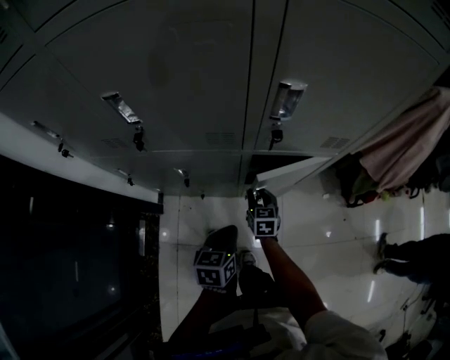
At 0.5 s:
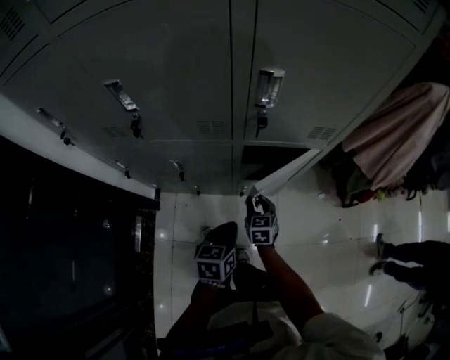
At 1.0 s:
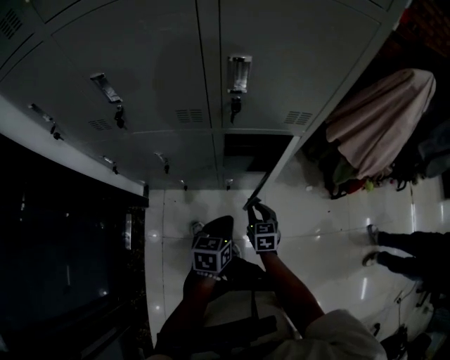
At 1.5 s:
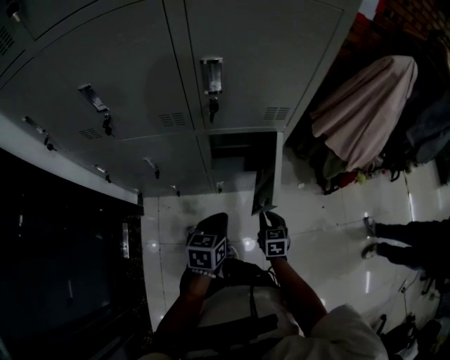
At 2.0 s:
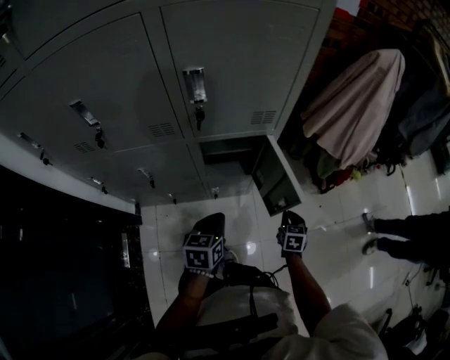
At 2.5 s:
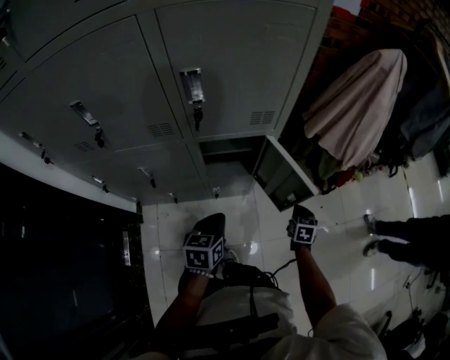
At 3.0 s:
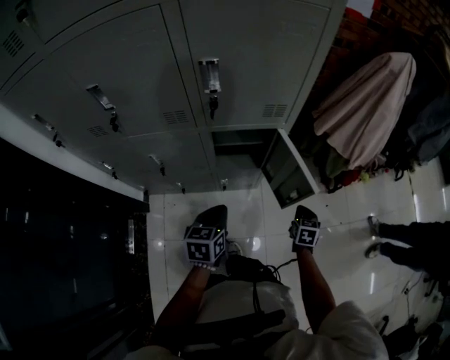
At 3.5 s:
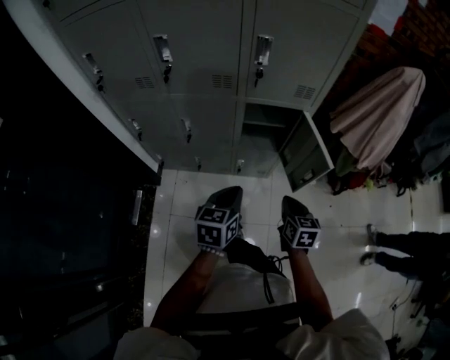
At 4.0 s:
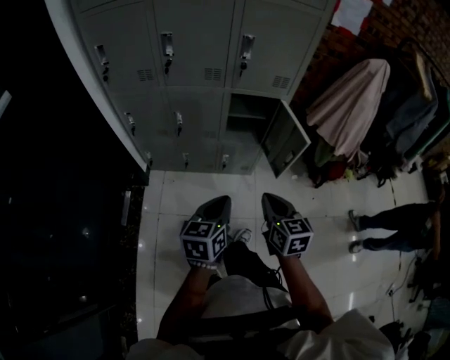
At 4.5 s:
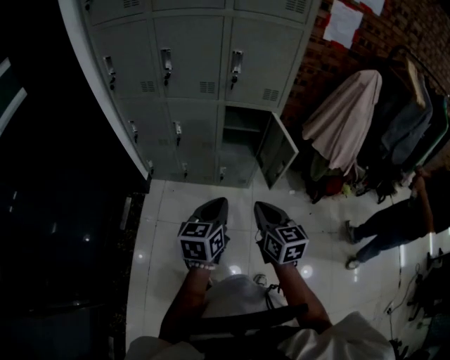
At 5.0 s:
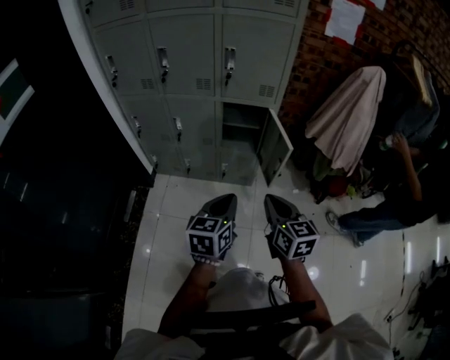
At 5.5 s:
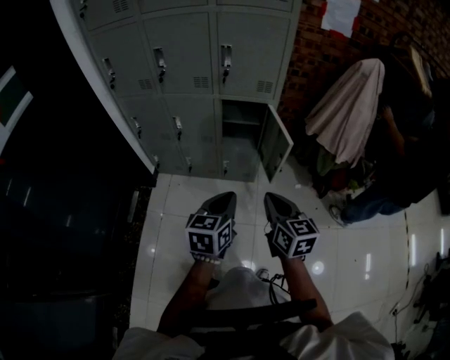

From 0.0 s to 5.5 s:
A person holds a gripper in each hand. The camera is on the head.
From 0.0 s to 2.0 s: The left gripper heads to the right, covering approximately 10 cm; the right gripper shifts roughly 30 cm to the right, rotates some 20 degrees, and closes.
From 2.0 s to 3.5 s: The left gripper shifts approximately 15 cm backward and upward. The right gripper travels upward, backward and to the left by roughly 25 cm, and rotates approximately 20 degrees.
From 3.5 s to 5.5 s: The right gripper travels upward and backward by approximately 25 cm, and swivels roughly 20 degrees, while the left gripper travels backward, to the right and upward by roughly 20 cm.

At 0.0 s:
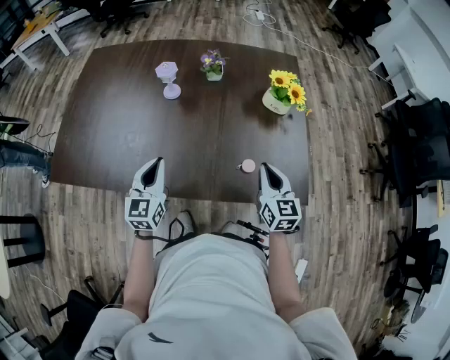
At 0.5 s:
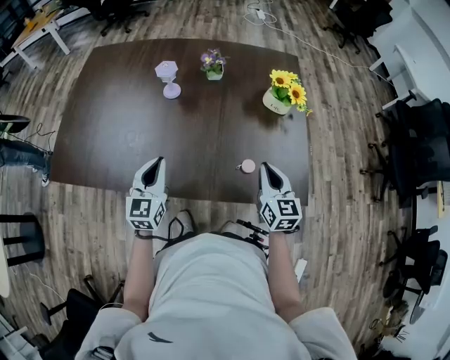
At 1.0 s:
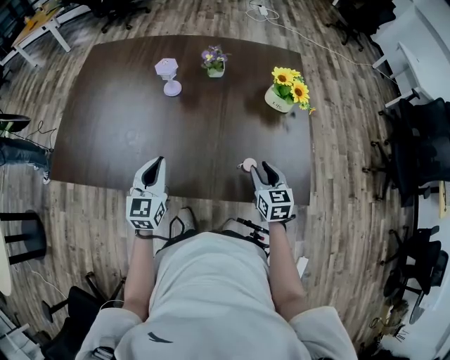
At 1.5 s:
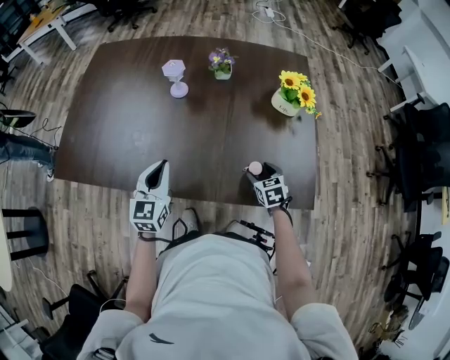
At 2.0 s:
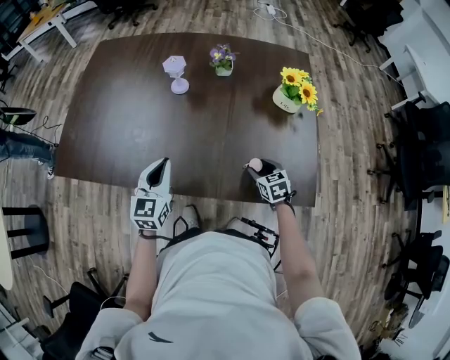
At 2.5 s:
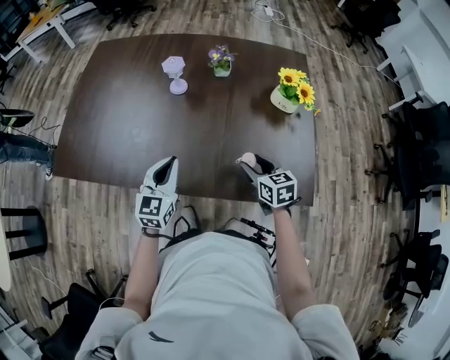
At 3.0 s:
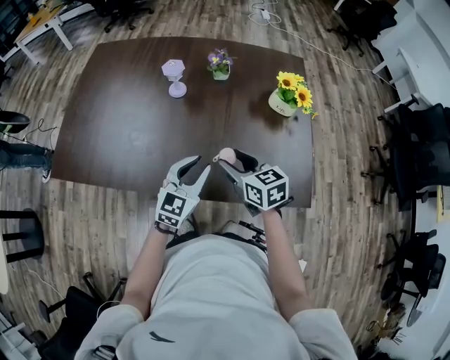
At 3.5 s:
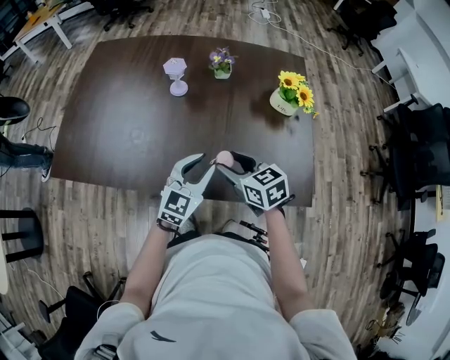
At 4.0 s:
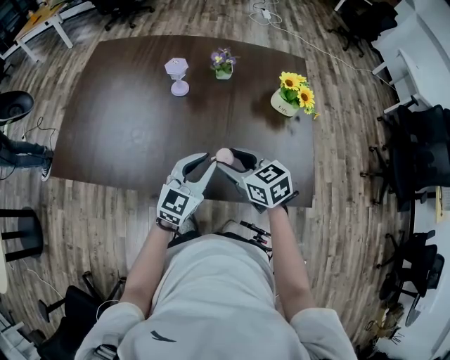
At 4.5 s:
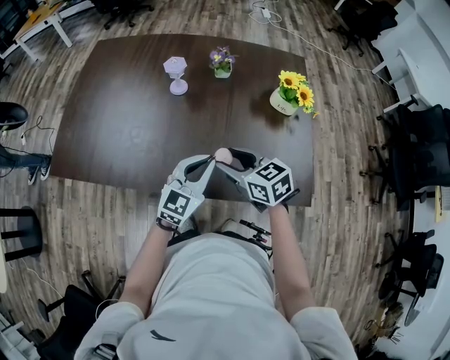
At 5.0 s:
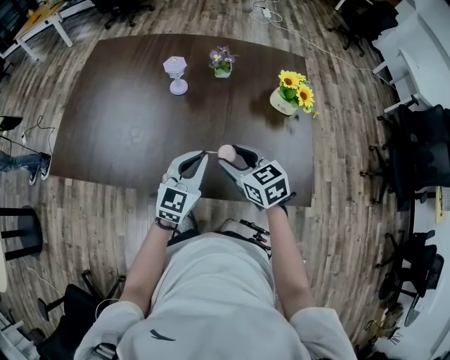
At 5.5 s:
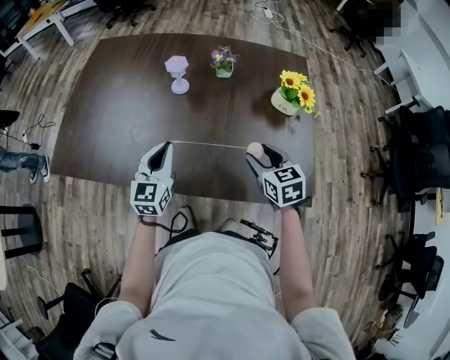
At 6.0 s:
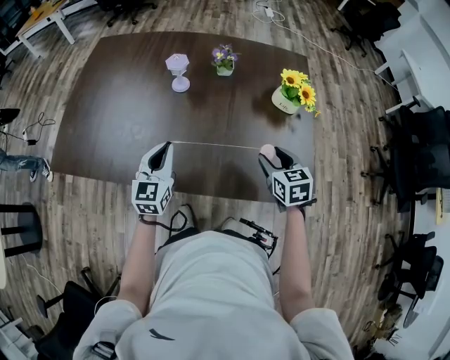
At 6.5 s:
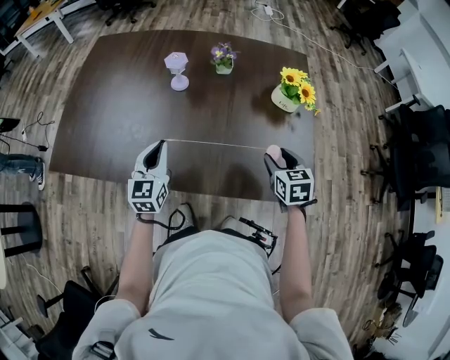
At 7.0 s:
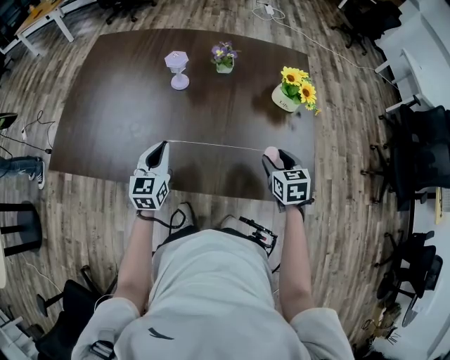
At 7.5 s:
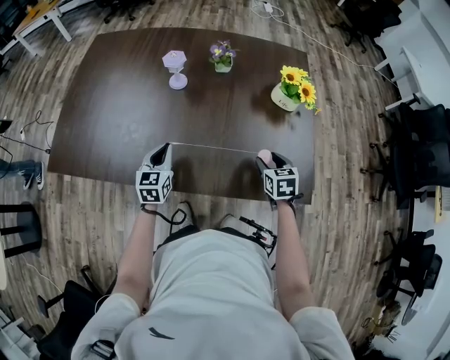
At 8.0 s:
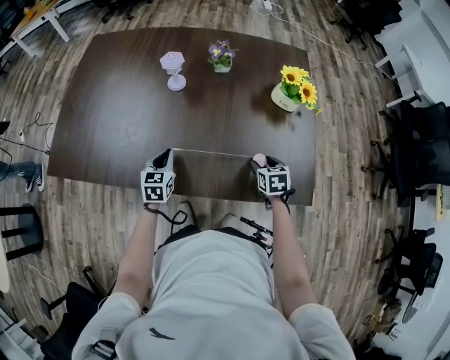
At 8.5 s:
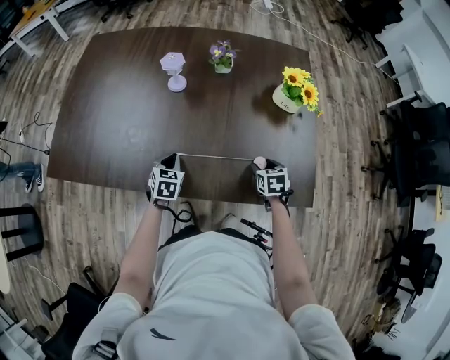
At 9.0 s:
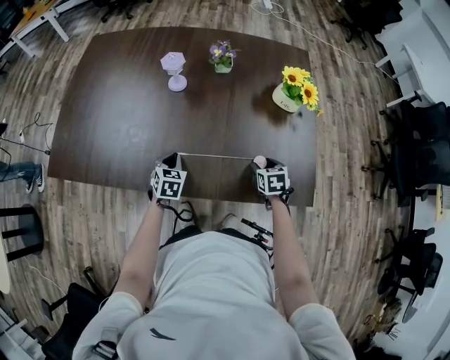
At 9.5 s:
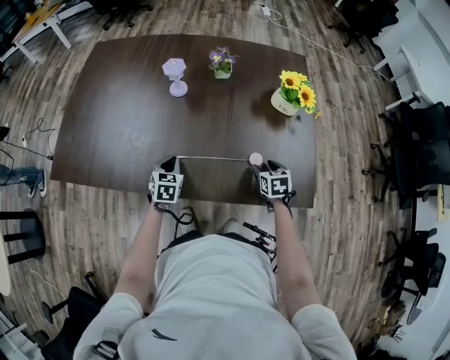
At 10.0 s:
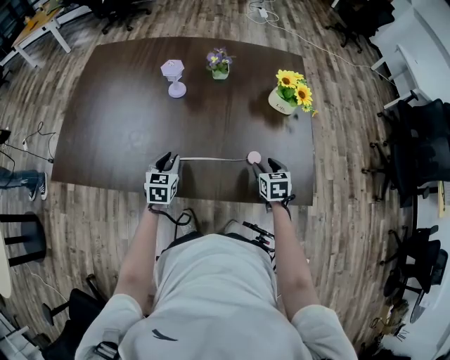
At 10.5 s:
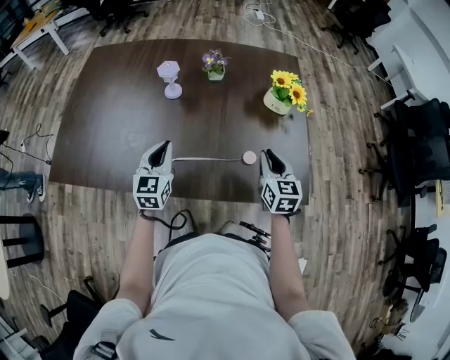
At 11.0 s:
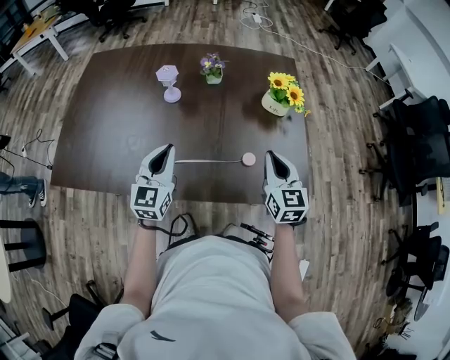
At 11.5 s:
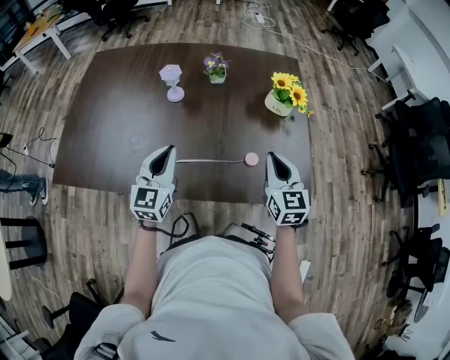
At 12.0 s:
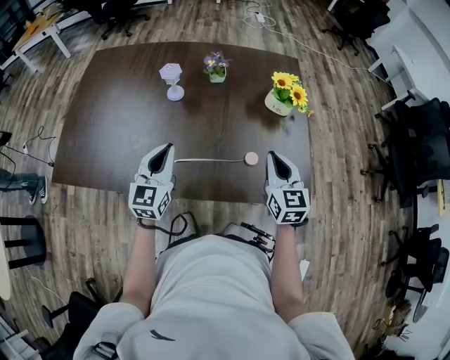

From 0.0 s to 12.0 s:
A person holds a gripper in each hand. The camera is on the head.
From 0.0 s to 2.0 s: The right gripper moves downward, about 15 cm, points its fingers some 30 degrees further downward, and opens up.
From 2.0 s to 4.0 s: The left gripper heads to the right, covering about 10 cm, and turns by about 20 degrees. The right gripper heads upward and to the left, covering approximately 25 cm, and rotates about 20 degrees.
From 4.0 s to 6.0 s: The left gripper shifts about 10 cm to the left, and rotates approximately 20 degrees, while the right gripper goes about 15 cm to the right, and turns by approximately 30 degrees.
From 6.0 s to 8.0 s: The two grippers go roughly 15 cm downward. The left gripper turns by about 20 degrees.
From 8.0 s to 10.0 s: The left gripper opens its fingers.
From 10.0 s to 12.0 s: Both grippers move upward, about 20 cm. The left gripper turns by some 30 degrees, and closes up. Meanwhile the right gripper angles its fingers upward, by some 30 degrees, and closes.

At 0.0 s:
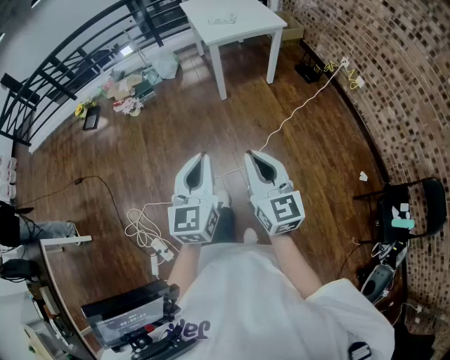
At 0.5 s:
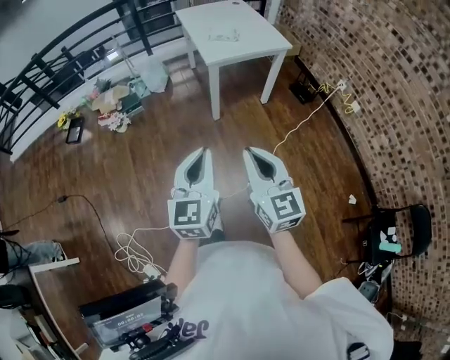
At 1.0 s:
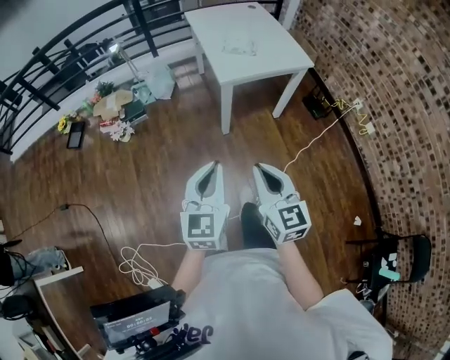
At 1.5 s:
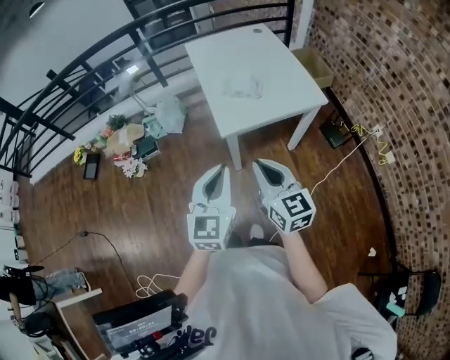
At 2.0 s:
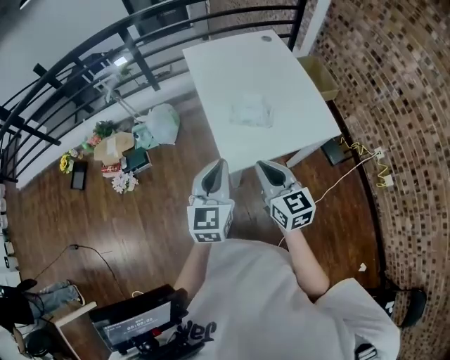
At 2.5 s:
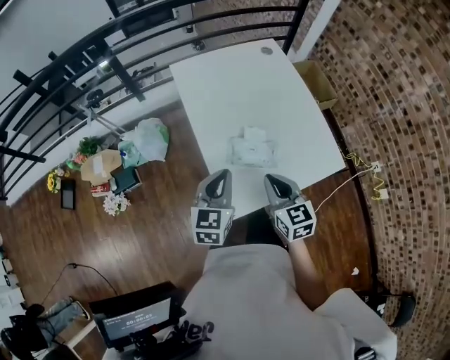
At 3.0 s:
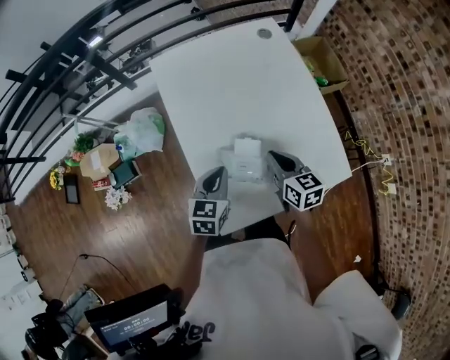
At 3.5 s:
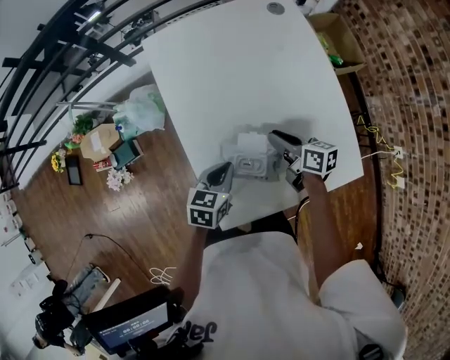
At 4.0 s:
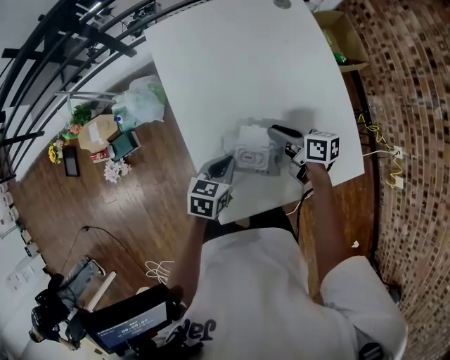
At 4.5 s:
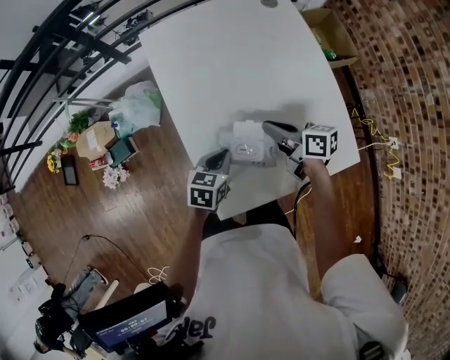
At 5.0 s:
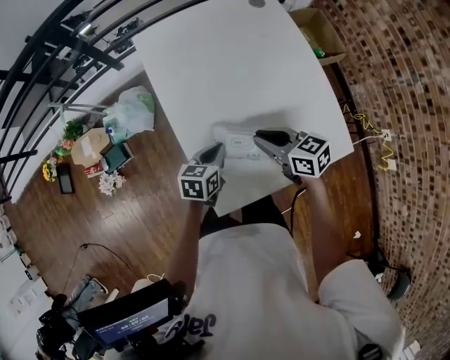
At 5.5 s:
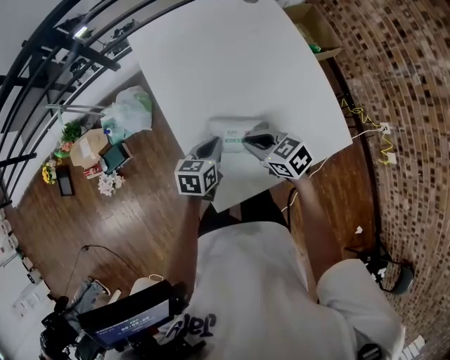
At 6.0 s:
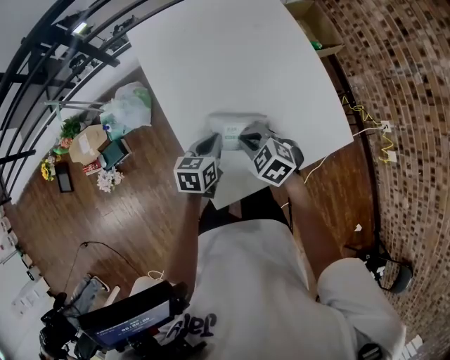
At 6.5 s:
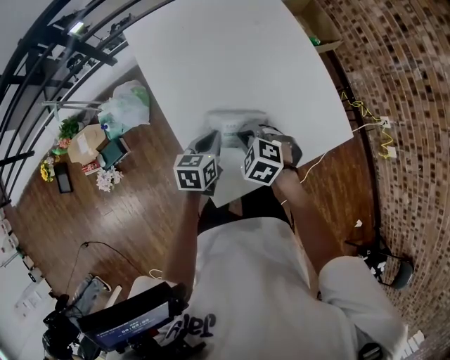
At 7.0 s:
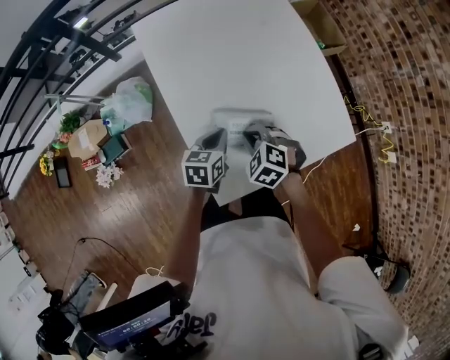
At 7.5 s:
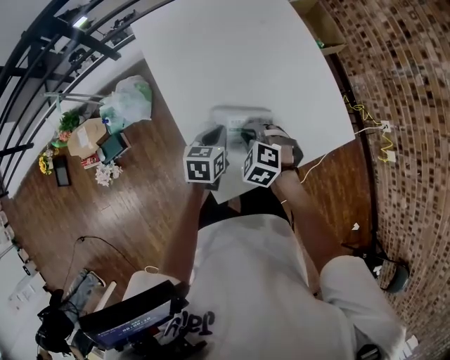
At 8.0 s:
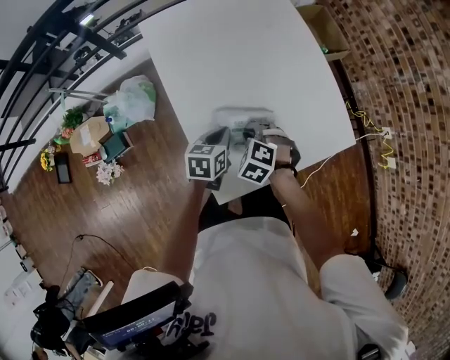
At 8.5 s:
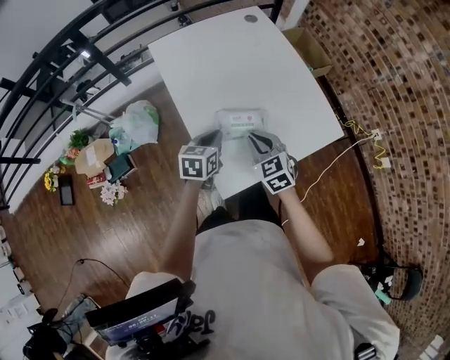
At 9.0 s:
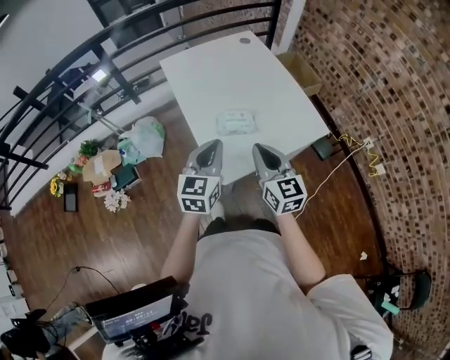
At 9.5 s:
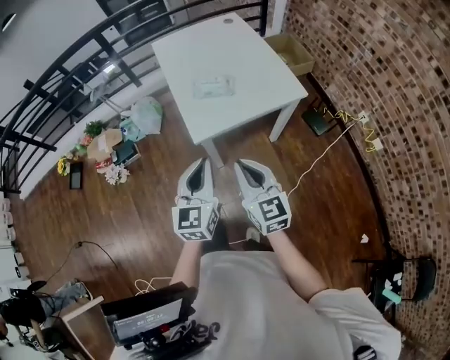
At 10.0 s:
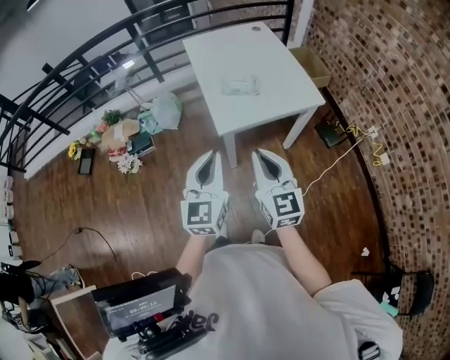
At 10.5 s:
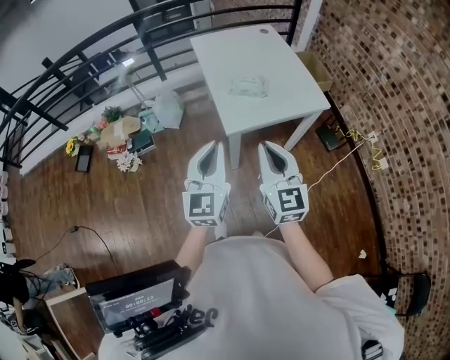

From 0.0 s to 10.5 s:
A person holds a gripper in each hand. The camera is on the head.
From 0.0 s to 2.0 s: The two grippers travel together, forward, approximately 90 cm.
From 2.0 s to 4.0 s: Both grippers move forward and downward, roughly 40 cm. The left gripper points its fingers roughly 40 degrees further downward, while the right gripper twists roughly 40 degrees clockwise, seen from behind, and opens its fingers.
From 4.0 s to 6.5 s: The right gripper travels backward and to the left by roughly 15 cm, rolls counterclockwise, seen from behind, by approximately 70 degrees, and closes up.
From 6.5 s to 8.5 s: Both grippers move upward, some 5 cm. The right gripper rotates about 40 degrees.
From 8.5 s to 10.5 s: Both grippers move backward and upward, some 50 cm. The right gripper angles its fingers upward, by some 30 degrees; the left gripper tips its fingers upward by about 40 degrees.
